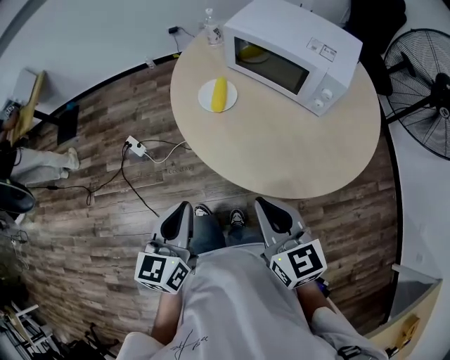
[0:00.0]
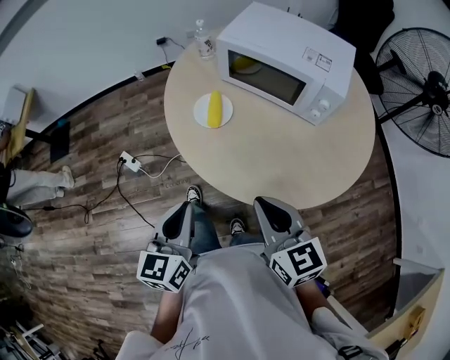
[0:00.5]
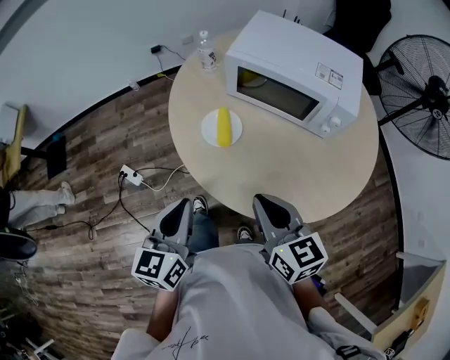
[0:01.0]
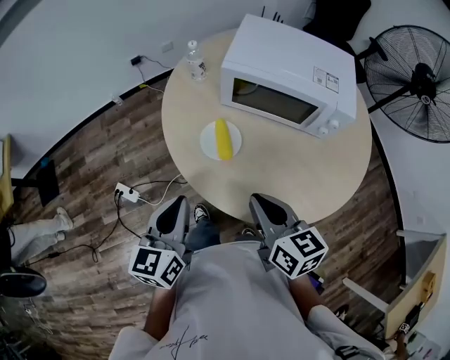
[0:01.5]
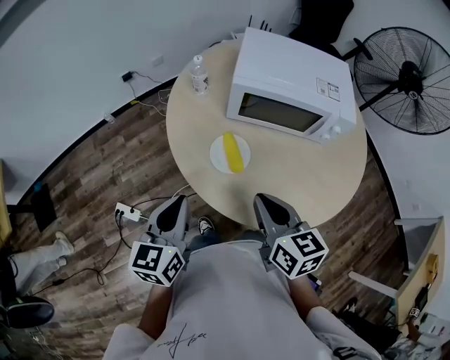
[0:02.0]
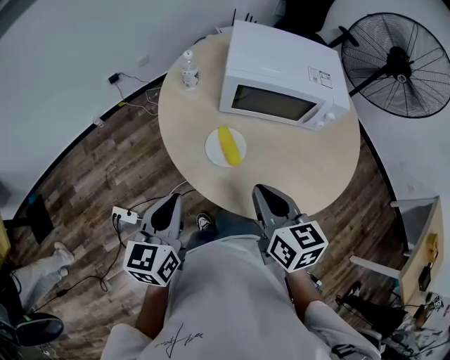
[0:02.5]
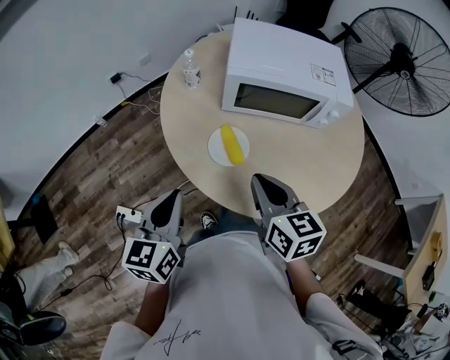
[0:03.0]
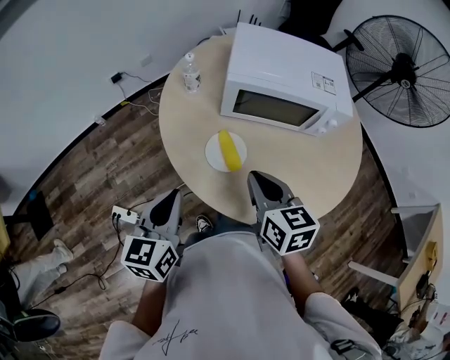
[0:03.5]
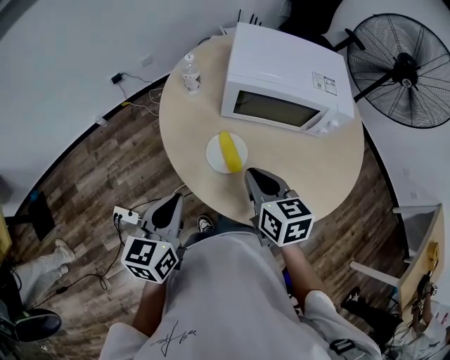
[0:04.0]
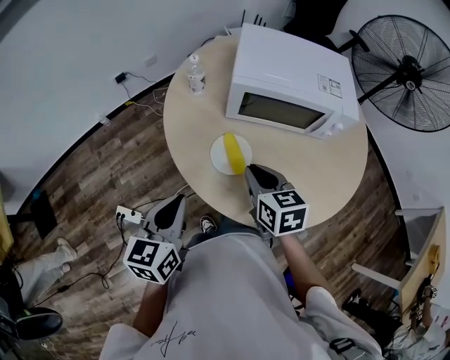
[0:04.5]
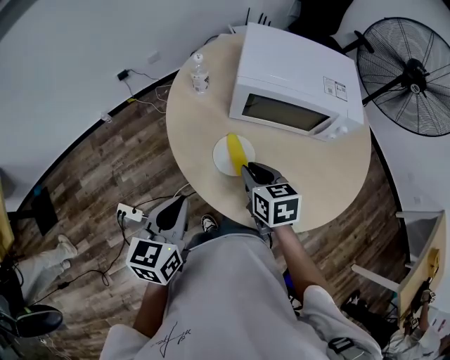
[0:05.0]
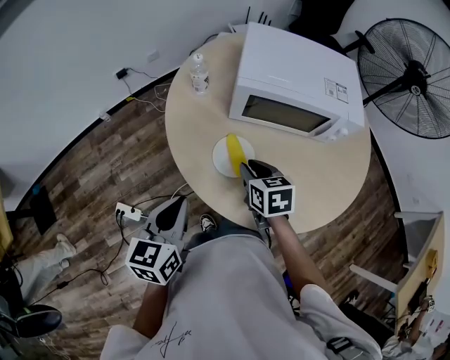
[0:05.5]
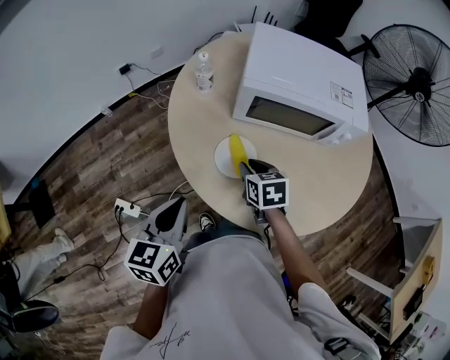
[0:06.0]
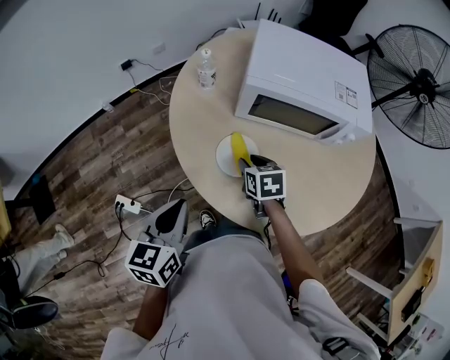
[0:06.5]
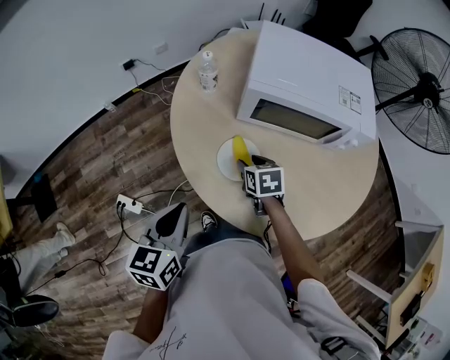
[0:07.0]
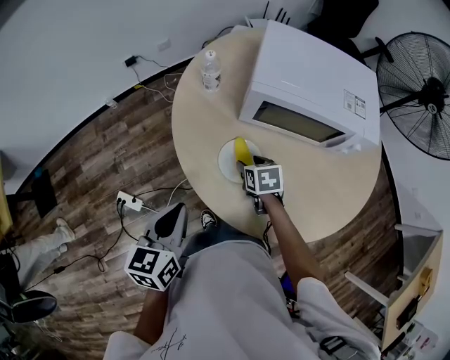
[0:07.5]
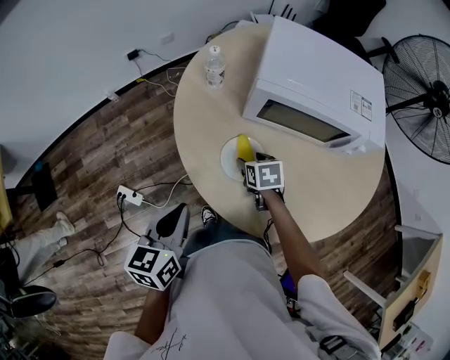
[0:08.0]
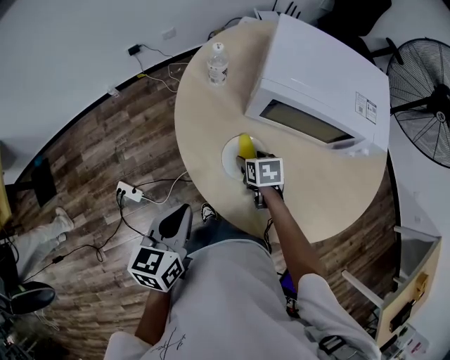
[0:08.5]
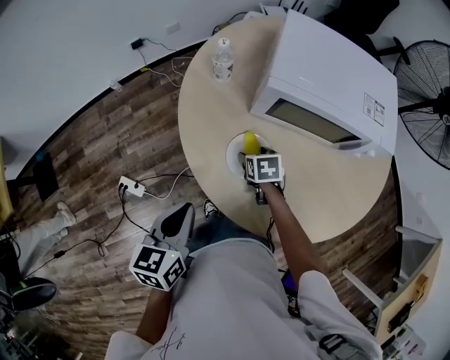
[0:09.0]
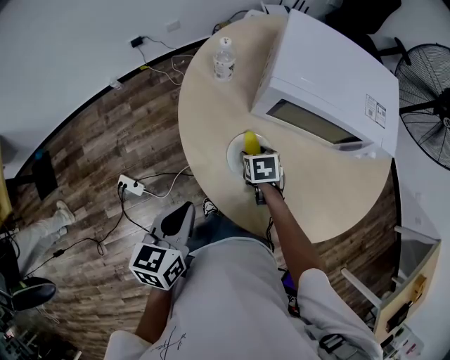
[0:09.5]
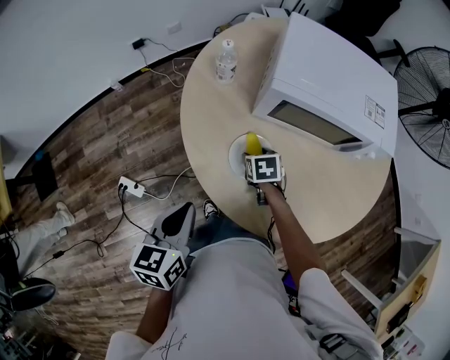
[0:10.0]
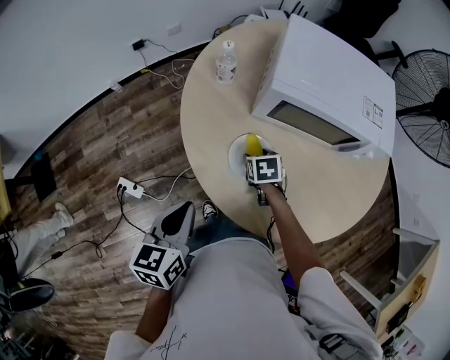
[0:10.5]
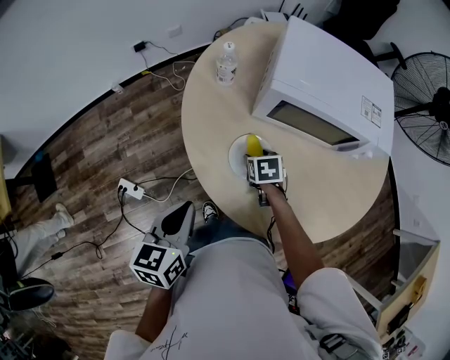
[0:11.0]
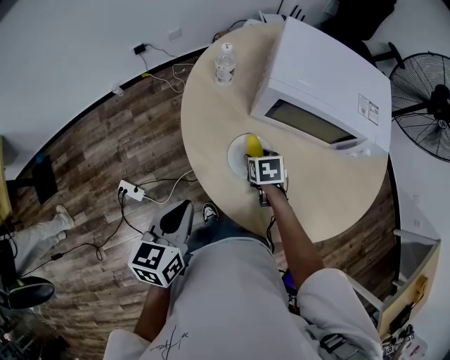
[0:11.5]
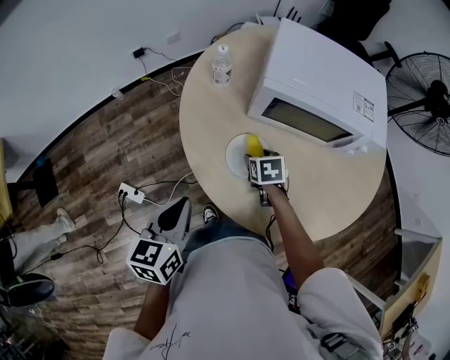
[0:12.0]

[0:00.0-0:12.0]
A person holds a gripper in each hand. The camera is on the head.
0:00.0 to 0:02.0: The left gripper moves about 35 cm, and turns by about 20 degrees; the right gripper shifts by roughly 25 cm, and turns by about 30 degrees.
0:02.0 to 0:04.0: The right gripper is displaced forward by some 5 cm.
0:04.0 to 0:06.0: The right gripper travels downward and forward by about 15 cm.
0:06.0 to 0:08.0: The right gripper shifts some 10 cm downward, and opens.
0:08.0 to 0:12.0: The grippers make only small movements.

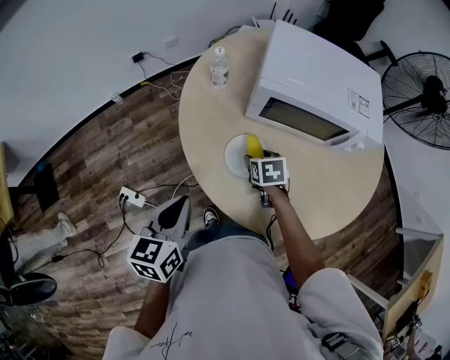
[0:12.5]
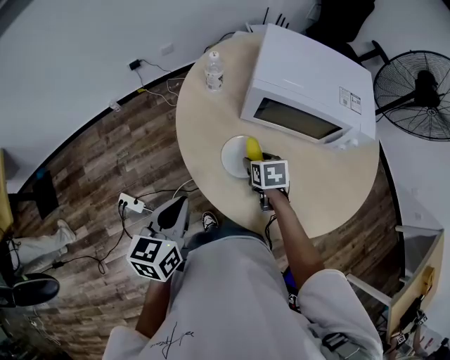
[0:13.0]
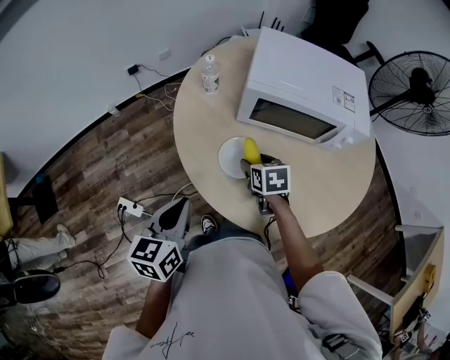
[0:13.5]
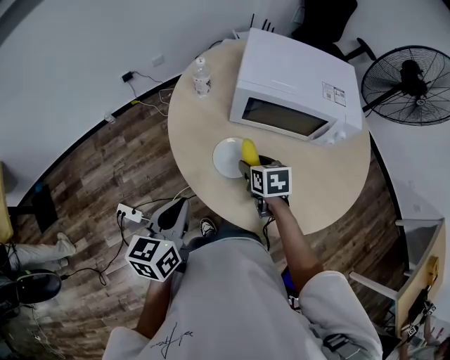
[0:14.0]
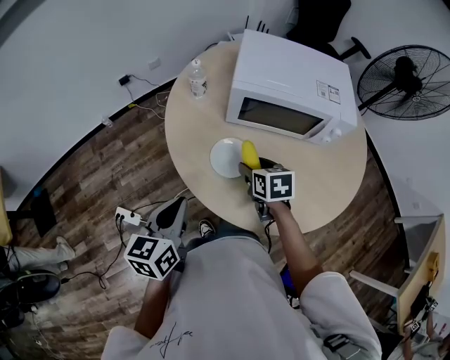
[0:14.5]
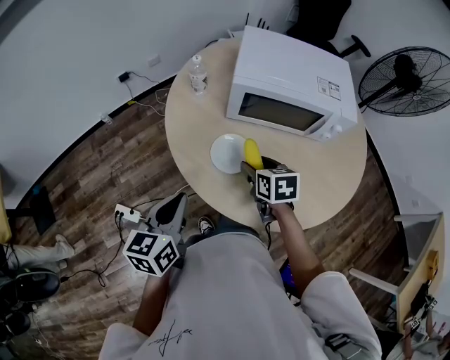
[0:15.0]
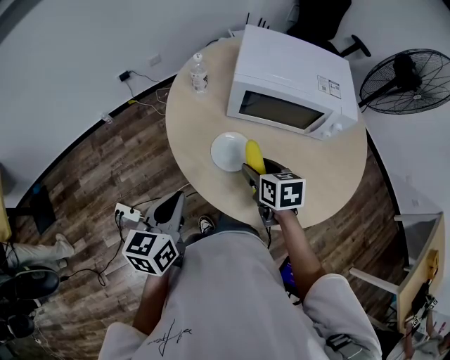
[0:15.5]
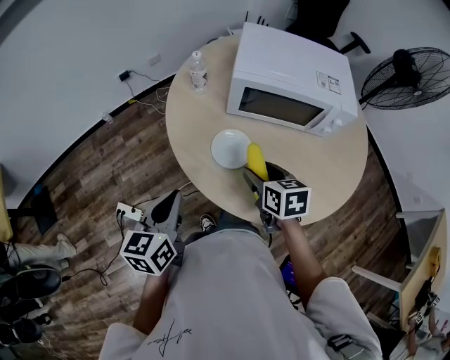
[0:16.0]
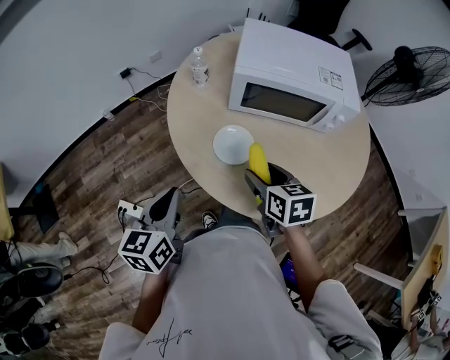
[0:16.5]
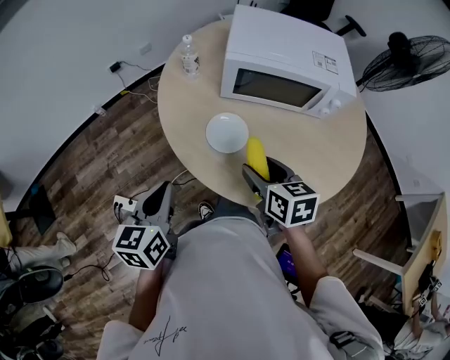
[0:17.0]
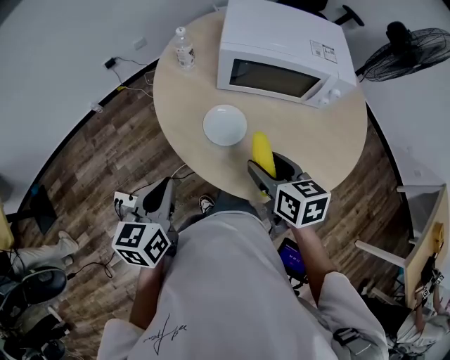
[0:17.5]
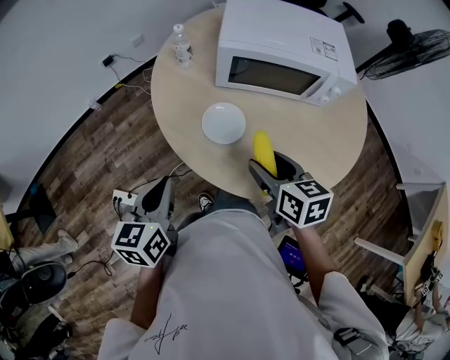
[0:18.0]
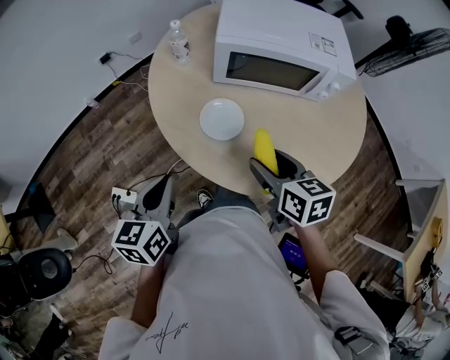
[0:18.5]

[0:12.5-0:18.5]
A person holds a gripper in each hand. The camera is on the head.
0:12.5 to 0:14.5: The right gripper heads upward, covering roughly 10 cm.
0:14.5 to 0:16.5: The right gripper travels backward and upward by approximately 10 cm.
0:16.5 to 0:18.5: The grippers make only small movements.

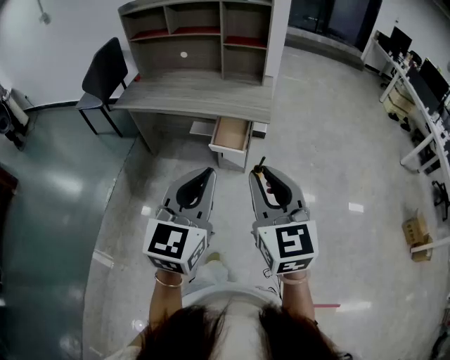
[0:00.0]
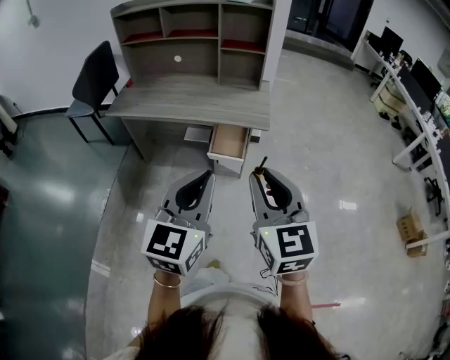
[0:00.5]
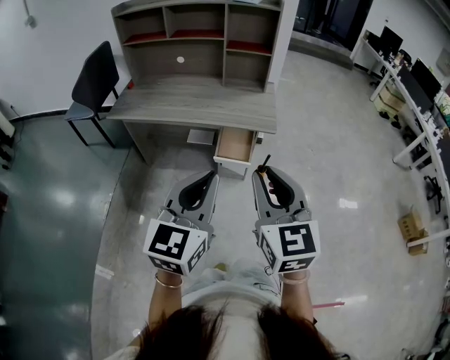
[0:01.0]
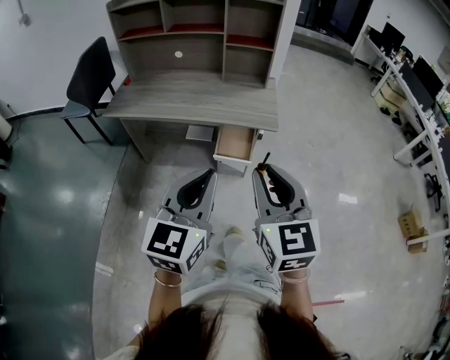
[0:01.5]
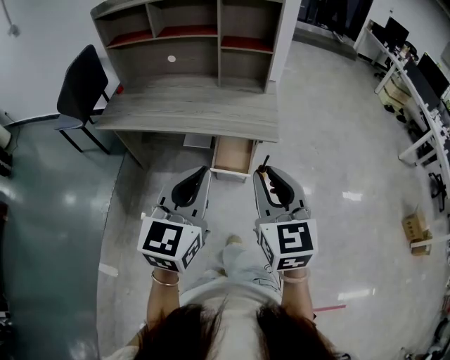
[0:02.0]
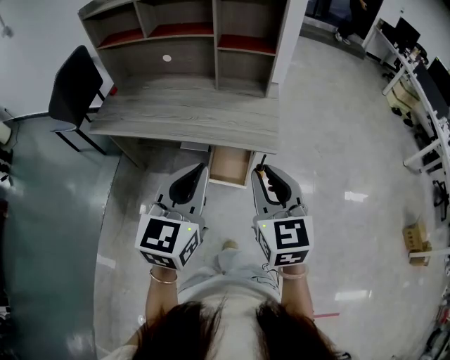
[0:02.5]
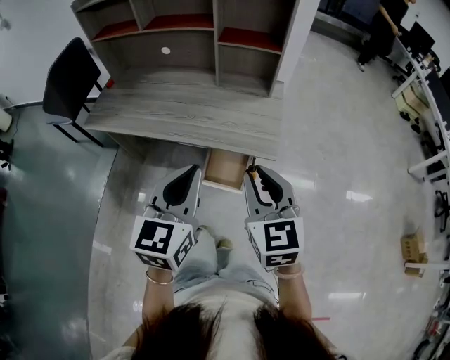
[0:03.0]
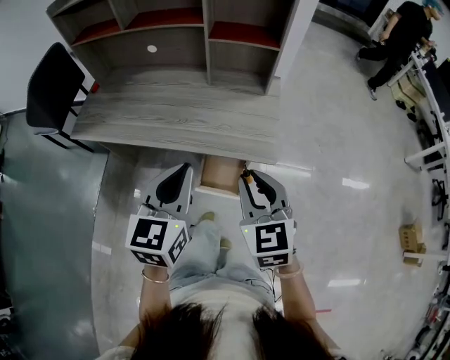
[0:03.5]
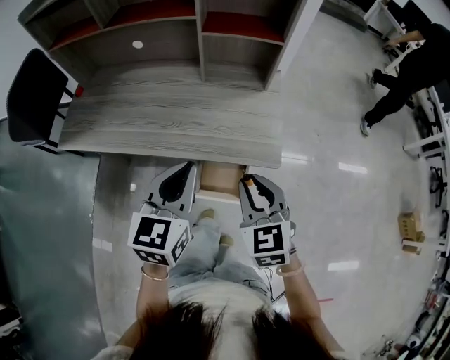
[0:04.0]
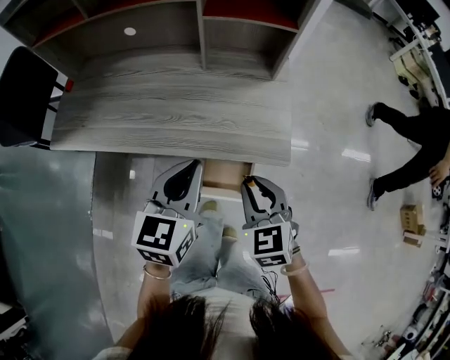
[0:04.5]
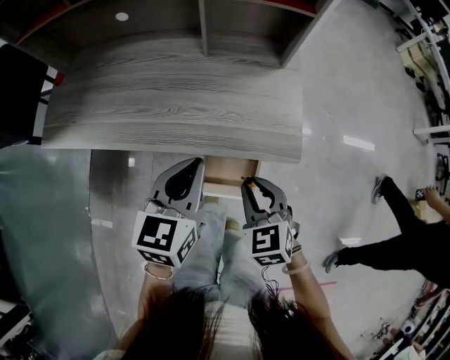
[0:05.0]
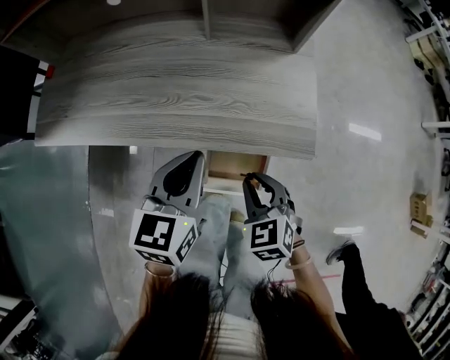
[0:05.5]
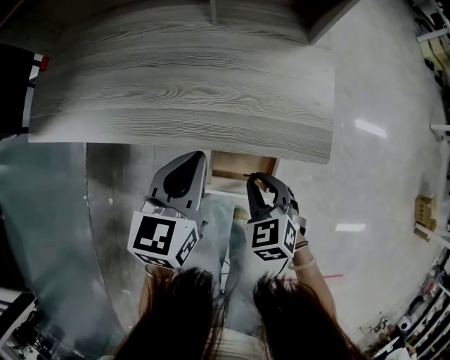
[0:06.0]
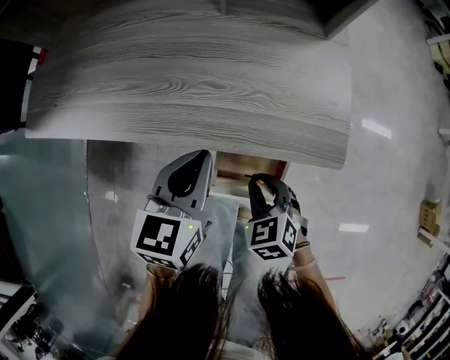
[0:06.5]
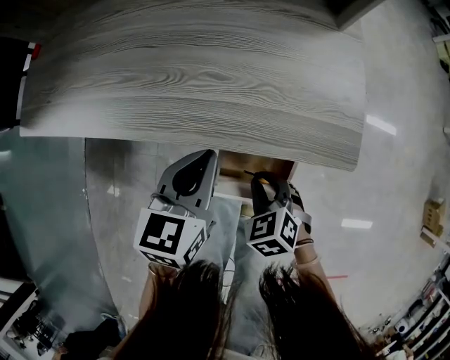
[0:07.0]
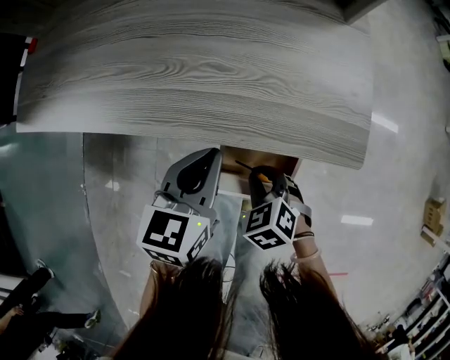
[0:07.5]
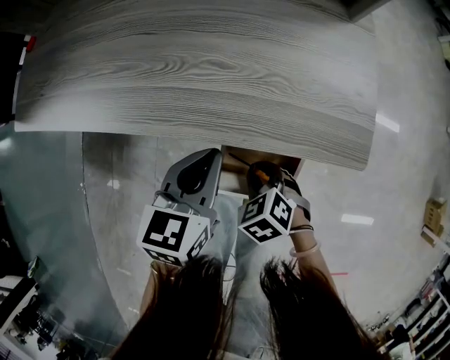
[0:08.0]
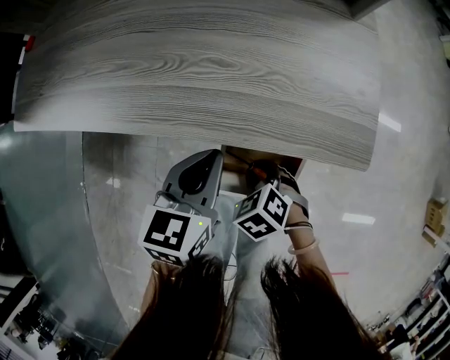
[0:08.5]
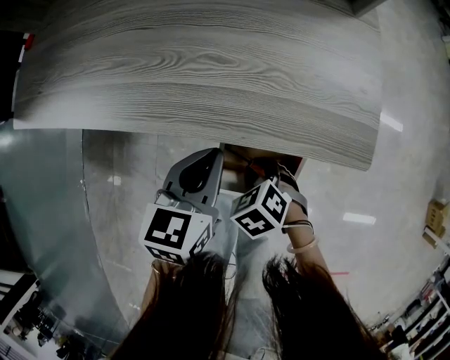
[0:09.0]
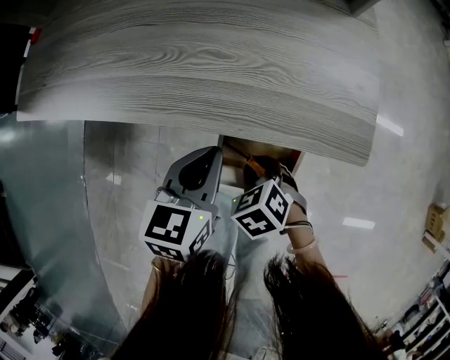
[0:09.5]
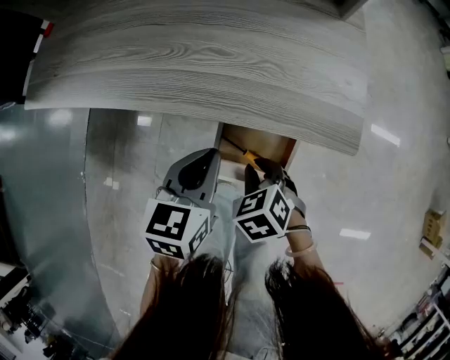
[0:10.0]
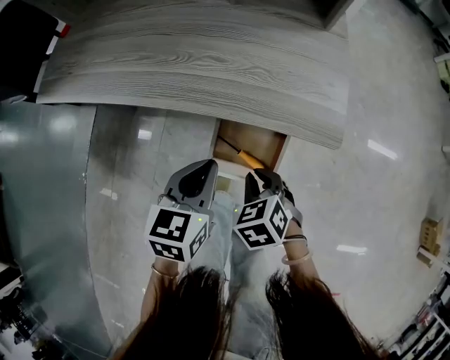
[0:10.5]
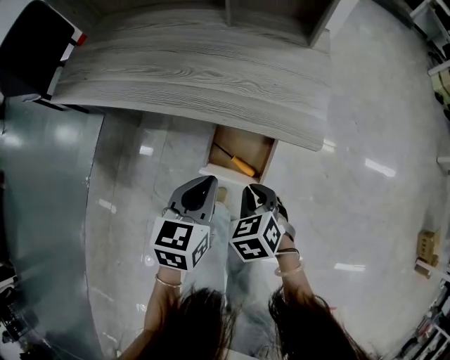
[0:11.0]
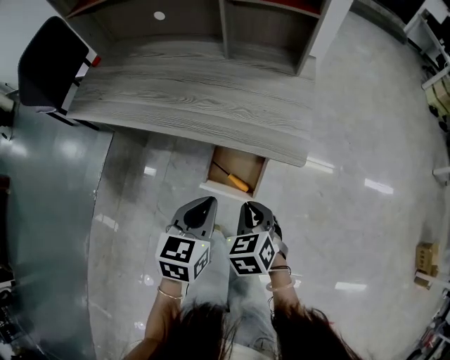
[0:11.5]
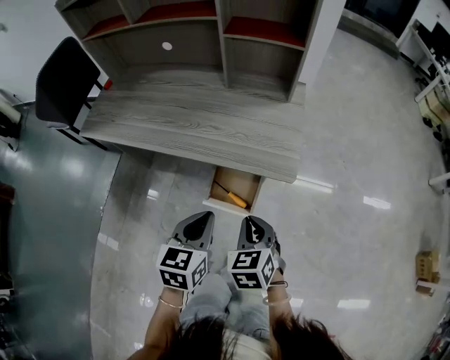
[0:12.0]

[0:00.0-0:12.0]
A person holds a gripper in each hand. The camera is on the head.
0:00.0 to 0:02.0: The right gripper shifts approximately 20 cm forward. The left gripper travels forward and to the left by about 20 cm.
0:02.0 to 0:04.0: Both grippers travel together forward and downward, about 30 cm.
0:04.0 to 0:06.0: Both grippers move downward, about 20 cm. The right gripper rotates about 20 degrees.
0:06.0 to 0:08.0: Both grippers travel together downward, some 10 cm. The right gripper turns by roughly 20 degrees.
0:08.0 to 0:10.0: The grippers move only a little.
0:10.0 to 0:12.0: The right gripper travels upward by about 20 cm, and rotates approximately 20 degrees, while the left gripper is displaced upward and backward by about 20 cm.
